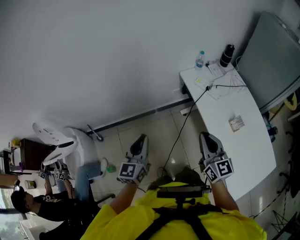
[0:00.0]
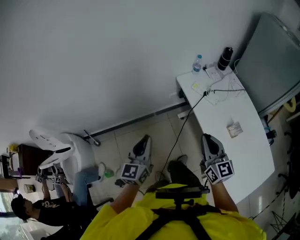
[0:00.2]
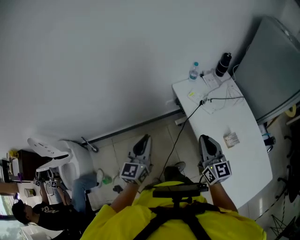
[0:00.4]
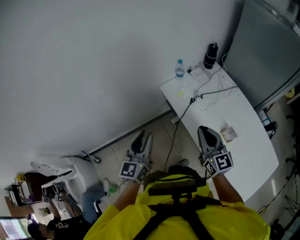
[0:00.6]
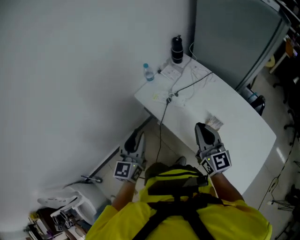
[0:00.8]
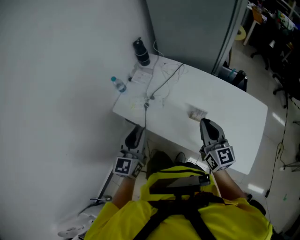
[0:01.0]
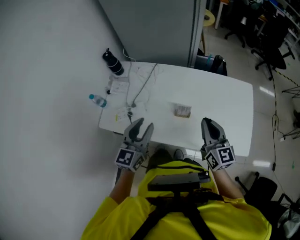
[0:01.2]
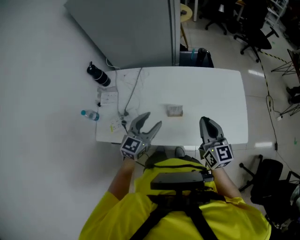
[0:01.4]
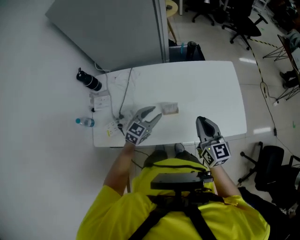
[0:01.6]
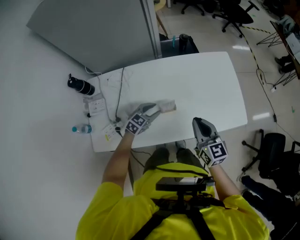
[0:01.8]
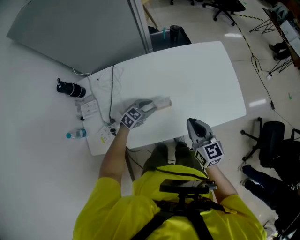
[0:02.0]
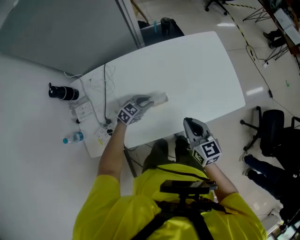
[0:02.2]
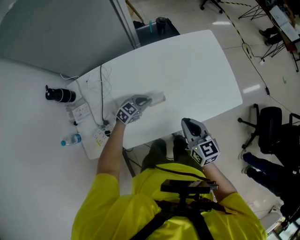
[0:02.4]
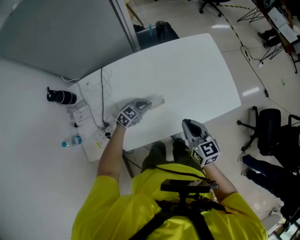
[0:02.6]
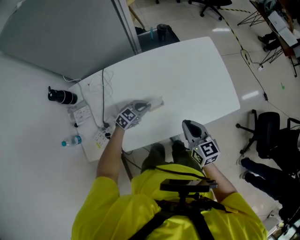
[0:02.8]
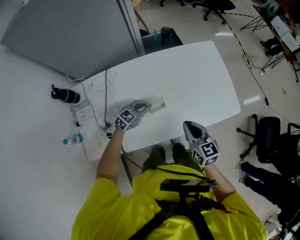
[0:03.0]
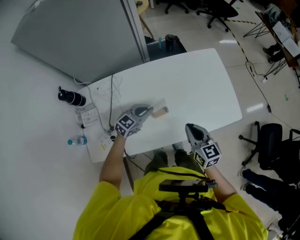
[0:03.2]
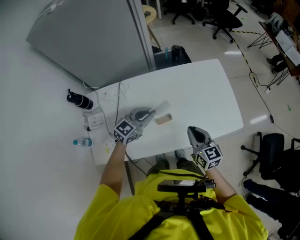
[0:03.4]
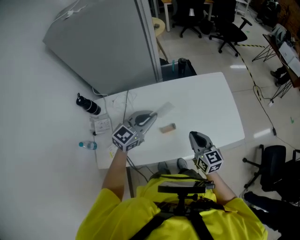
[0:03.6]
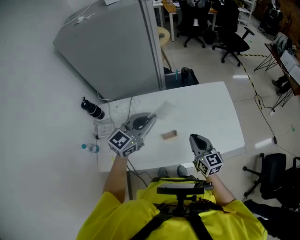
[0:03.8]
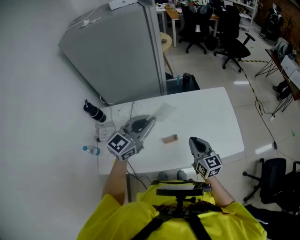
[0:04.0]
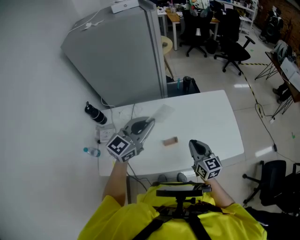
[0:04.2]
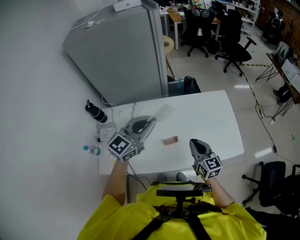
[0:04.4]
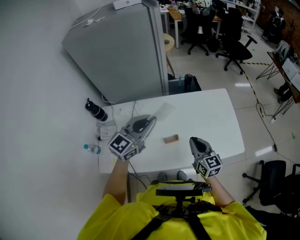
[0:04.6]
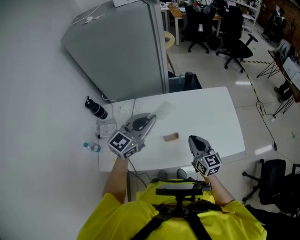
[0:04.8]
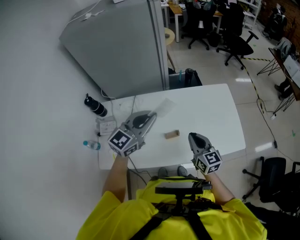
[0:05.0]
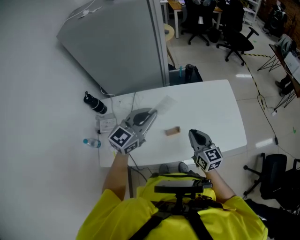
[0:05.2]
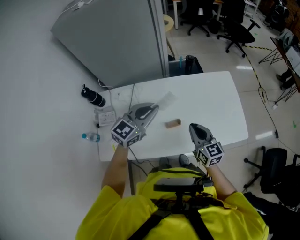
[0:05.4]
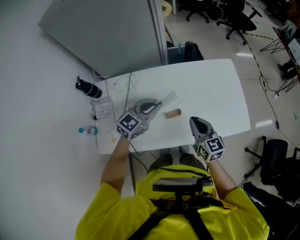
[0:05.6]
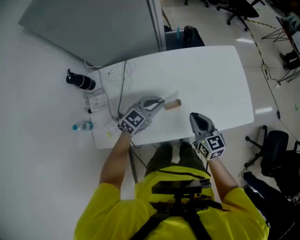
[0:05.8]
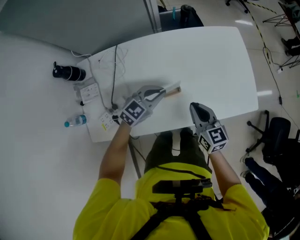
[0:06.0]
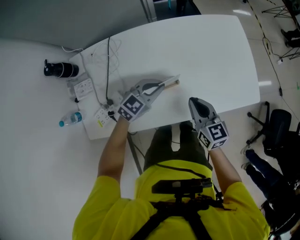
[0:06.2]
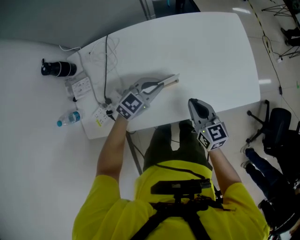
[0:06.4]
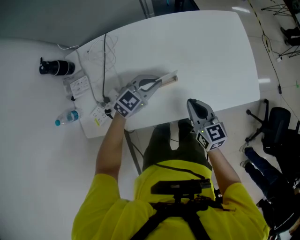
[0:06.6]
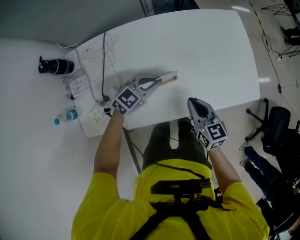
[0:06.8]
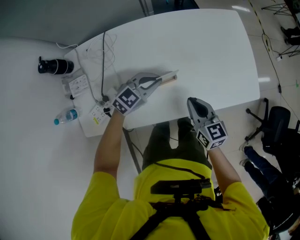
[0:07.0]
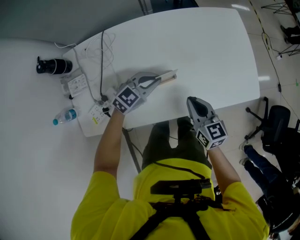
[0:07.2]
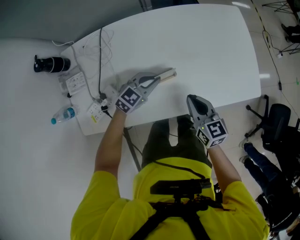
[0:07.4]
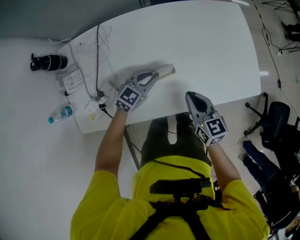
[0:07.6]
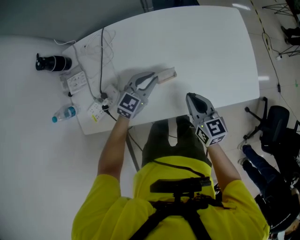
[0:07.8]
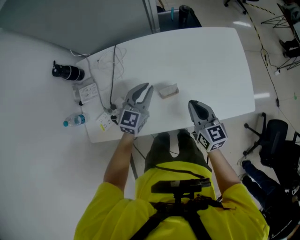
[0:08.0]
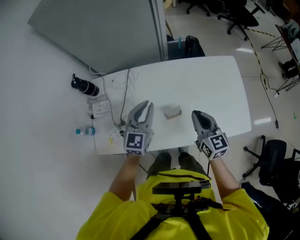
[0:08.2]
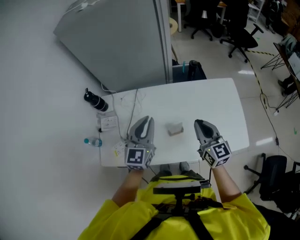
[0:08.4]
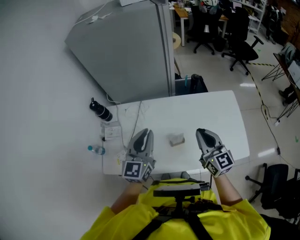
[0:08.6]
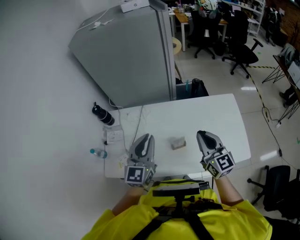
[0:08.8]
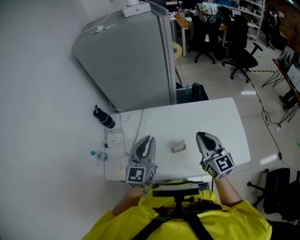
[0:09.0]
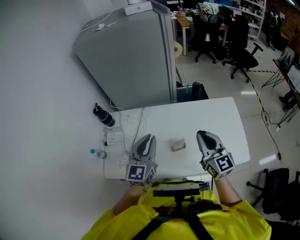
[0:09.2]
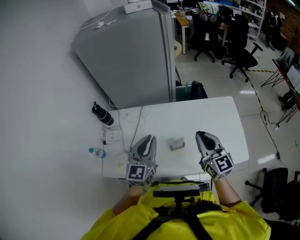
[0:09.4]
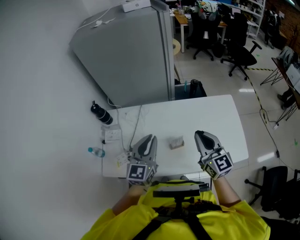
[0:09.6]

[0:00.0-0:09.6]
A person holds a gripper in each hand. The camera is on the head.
0:00.0 to 0:01.6: The left gripper shifts by about 60 cm, rotates some 100 degrees, and opens; the right gripper ends up approximately 35 cm from where it was, and changes its angle by approximately 70 degrees.
0:01.6 to 0:03.2: The right gripper heads downward, covering some 10 cm, while the left gripper travels forward by roughly 5 cm, travels downward and back again, roughly 15 cm each way, changes its angle by roughly 20 degrees, and closes its fingers.
0:03.2 to 0:04.8: The left gripper travels upward by roughly 25 cm, and swivels some 30 degrees, while the right gripper shifts approximately 5 cm upward.
0:04.8 to 0:06.4: The right gripper shifts about 15 cm downward. The left gripper is displaced downward by some 30 cm, and changes its angle by approximately 30 degrees.
0:06.4 to 0:08.0: The right gripper changes place by some 5 cm; the left gripper is displaced upward and to the left by approximately 10 cm, and rotates some 30 degrees.
0:08.0 to 0:09.6: Both grippers travel together upward, roughly 20 cm. The right gripper rotates roughly 30 degrees. The left gripper swivels about 20 degrees.

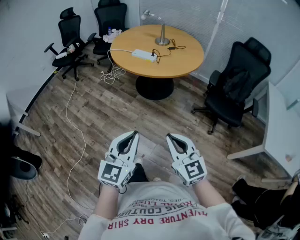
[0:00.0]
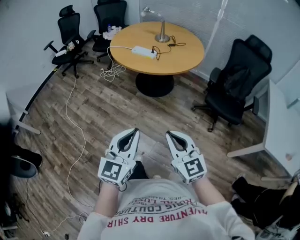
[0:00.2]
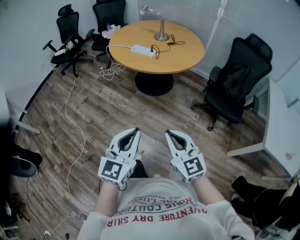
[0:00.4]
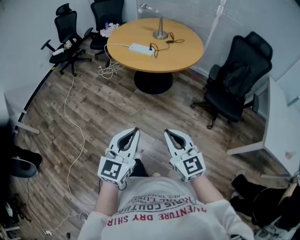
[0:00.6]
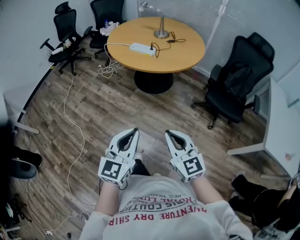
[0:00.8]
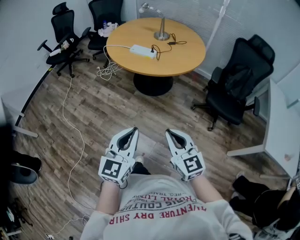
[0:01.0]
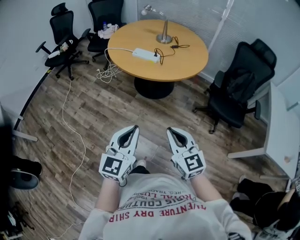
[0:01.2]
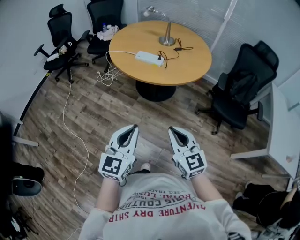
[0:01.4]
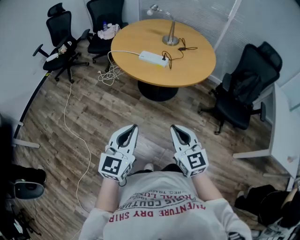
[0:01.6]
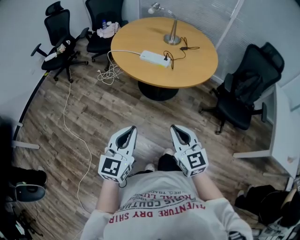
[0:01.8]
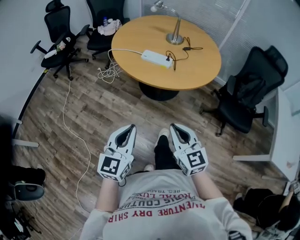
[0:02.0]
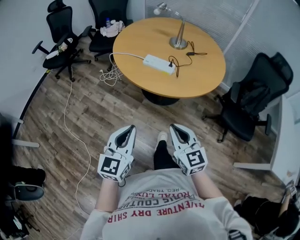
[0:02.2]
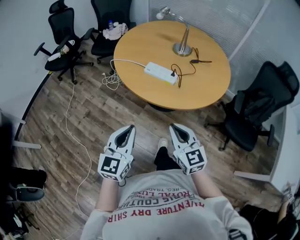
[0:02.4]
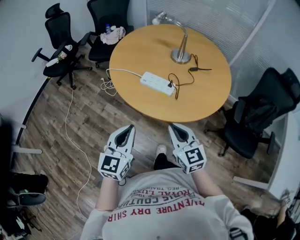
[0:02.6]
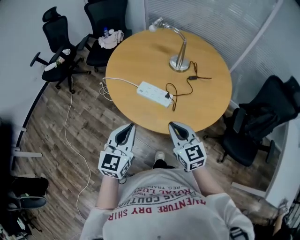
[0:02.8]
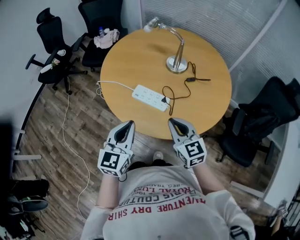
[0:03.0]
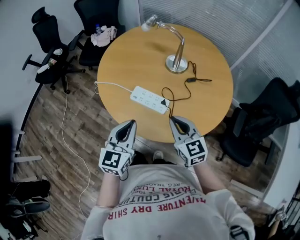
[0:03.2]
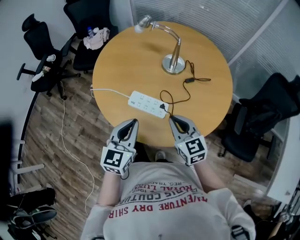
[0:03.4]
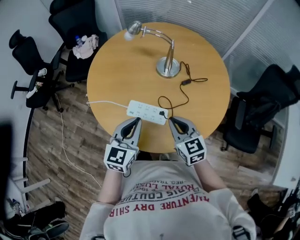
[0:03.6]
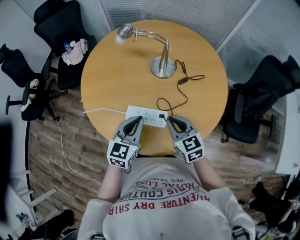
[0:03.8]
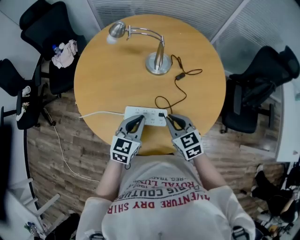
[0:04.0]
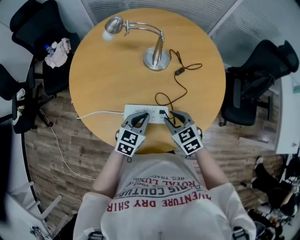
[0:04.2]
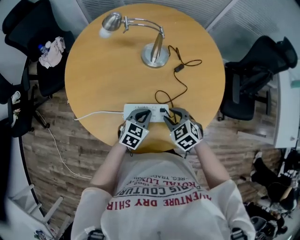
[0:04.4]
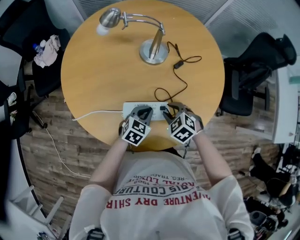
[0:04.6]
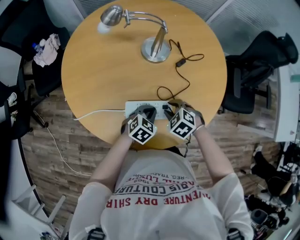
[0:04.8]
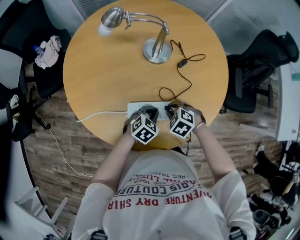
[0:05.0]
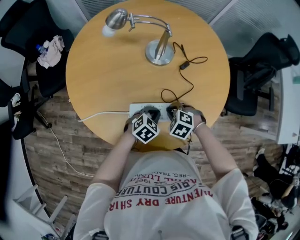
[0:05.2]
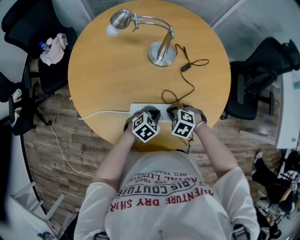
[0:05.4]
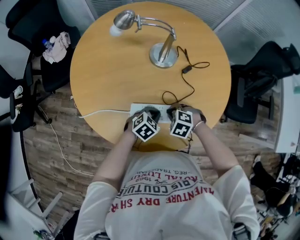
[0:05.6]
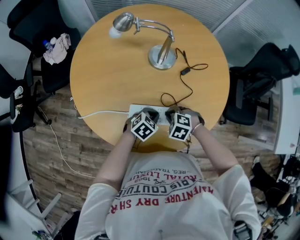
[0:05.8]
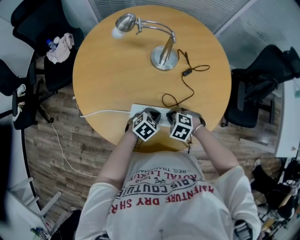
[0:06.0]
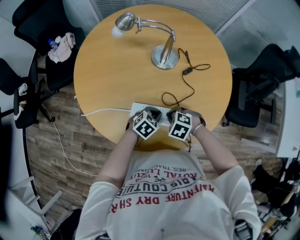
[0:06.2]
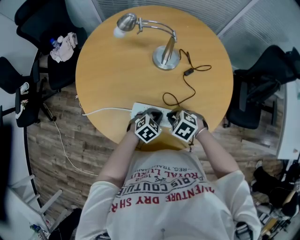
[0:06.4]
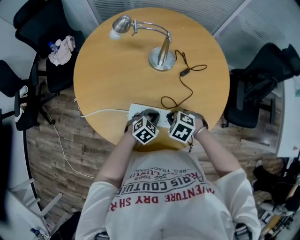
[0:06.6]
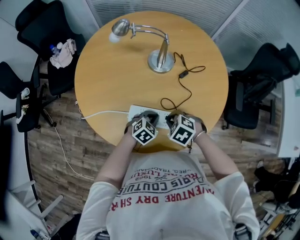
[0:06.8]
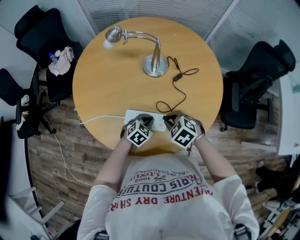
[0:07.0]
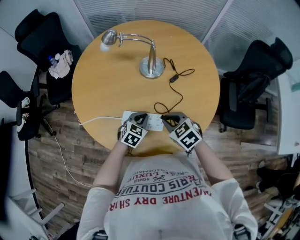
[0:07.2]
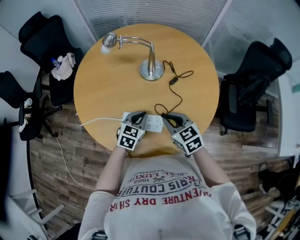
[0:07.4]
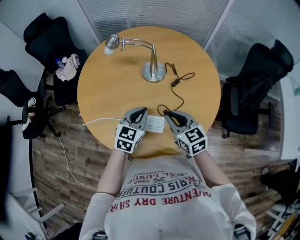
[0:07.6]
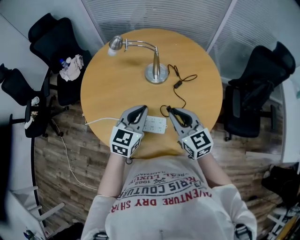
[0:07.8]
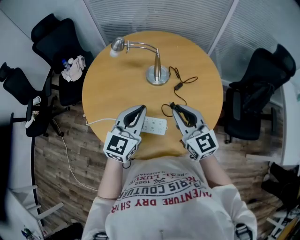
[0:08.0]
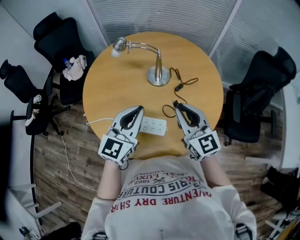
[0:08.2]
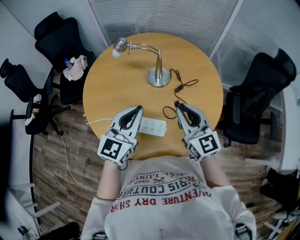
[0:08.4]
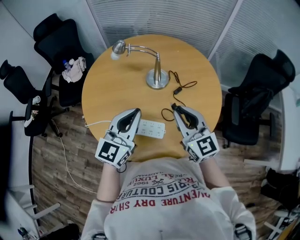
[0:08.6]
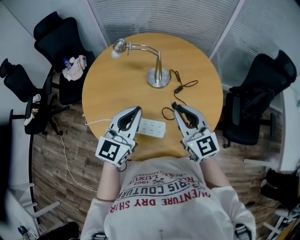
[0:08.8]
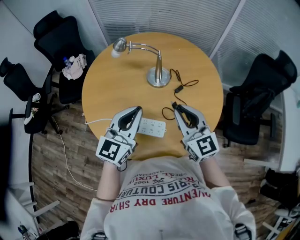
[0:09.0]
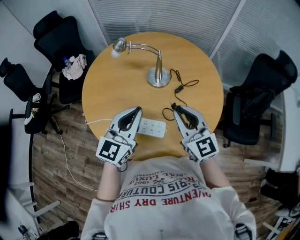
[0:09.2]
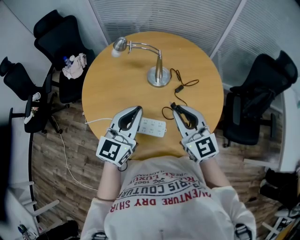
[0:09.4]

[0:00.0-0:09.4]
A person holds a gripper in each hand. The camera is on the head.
0:00.0 to 0:01.6: Both grippers move forward and to the left, some 25 cm.
0:01.6 to 0:03.2: Both grippers are carried forward, roughly 40 cm.
0:03.2 to 0:04.8: Both grippers move downward, roughly 20 cm. The right gripper tilts its fingers some 50 degrees downward, and opens its fingers; the left gripper tilts its fingers approximately 40 degrees downward.
0:04.8 to 0:06.2: The right gripper closes.
0:06.2 to 0:07.8: Both grippers move upward, about 25 cm. The right gripper tips its fingers upward by approximately 60 degrees; the left gripper tilts its fingers approximately 30 degrees upward.
0:07.8 to 0:09.4: The two grippers go approximately 10 cm upward.

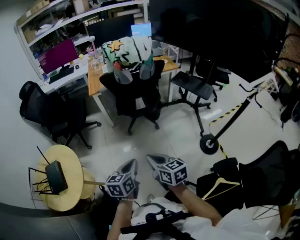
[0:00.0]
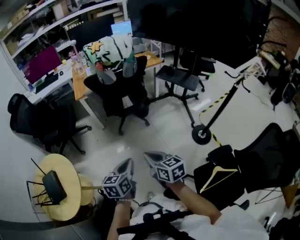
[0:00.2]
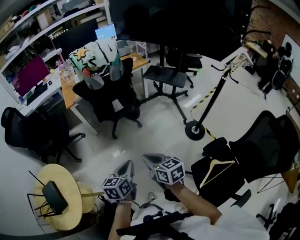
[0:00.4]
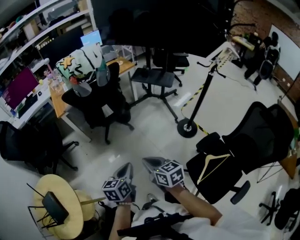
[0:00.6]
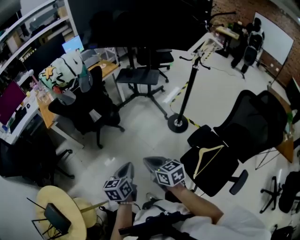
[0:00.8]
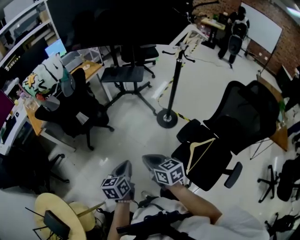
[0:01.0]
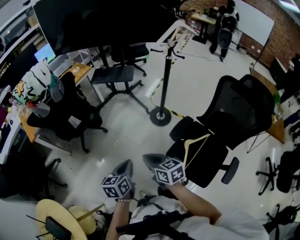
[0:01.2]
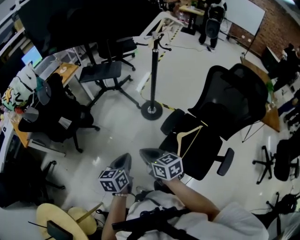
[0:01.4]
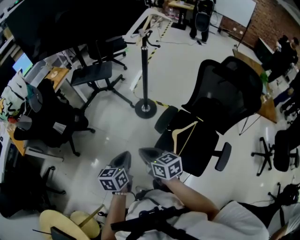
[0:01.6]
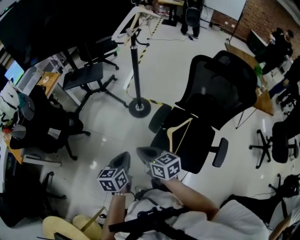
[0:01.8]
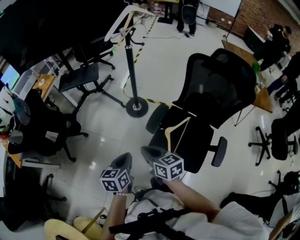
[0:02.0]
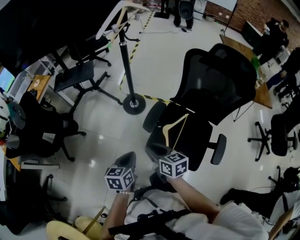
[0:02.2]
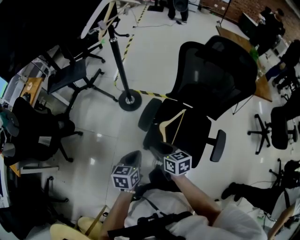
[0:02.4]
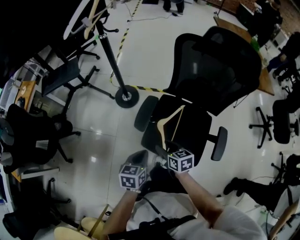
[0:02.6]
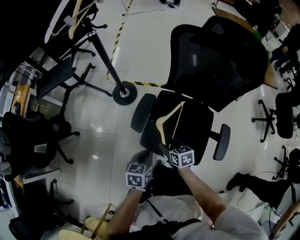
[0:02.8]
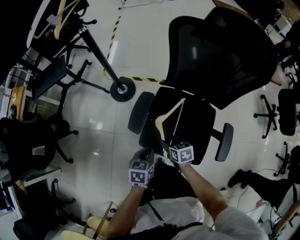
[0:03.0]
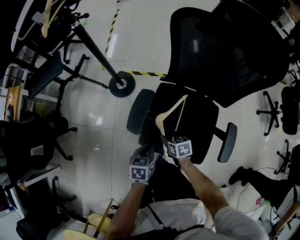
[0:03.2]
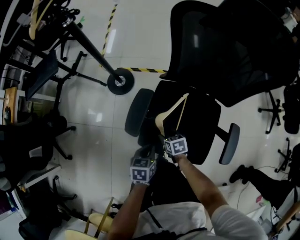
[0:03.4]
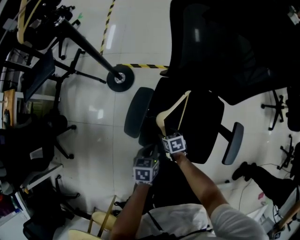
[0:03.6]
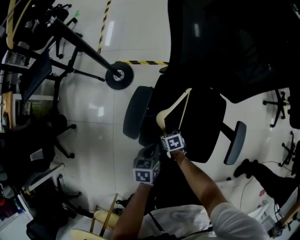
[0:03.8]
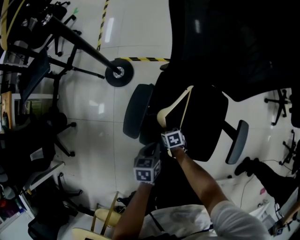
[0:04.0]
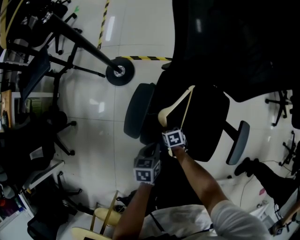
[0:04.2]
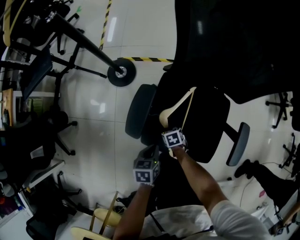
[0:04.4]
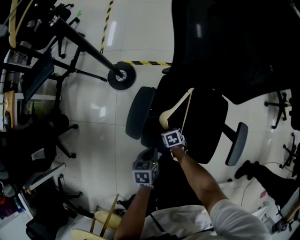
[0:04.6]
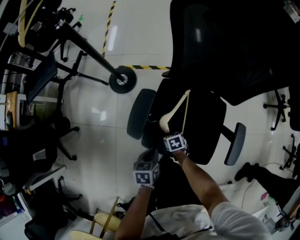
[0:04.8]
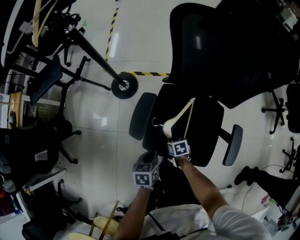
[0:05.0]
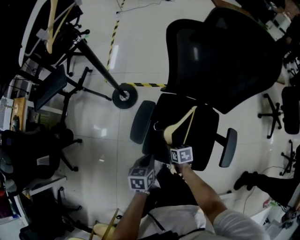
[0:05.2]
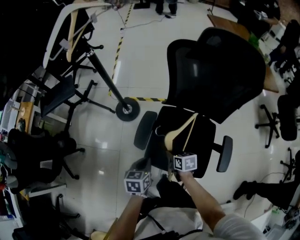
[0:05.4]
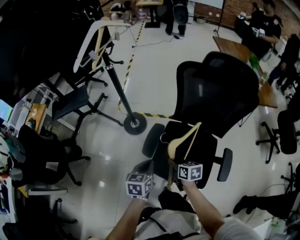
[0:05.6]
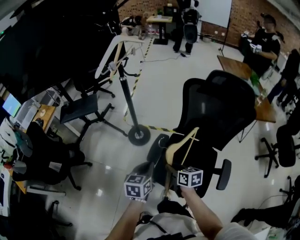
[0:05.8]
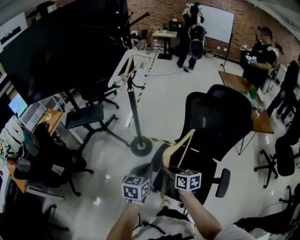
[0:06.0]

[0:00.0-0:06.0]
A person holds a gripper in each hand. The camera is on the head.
0:00.0 to 0:01.6: The left gripper moves roughly 30 cm, and rotates about 40 degrees. Meanwhile the right gripper moves approximately 30 cm, and changes its angle by approximately 40 degrees.
0:01.6 to 0:03.0: The left gripper shifts by about 35 cm, and swivels roughly 30 degrees. The right gripper travels downward by some 30 cm, swivels approximately 40 degrees, and opens up.
0:03.0 to 0:04.4: The left gripper moves downward, some 10 cm, while the right gripper is displaced downward by about 20 cm, and rotates roughly 20 degrees.
0:04.4 to 0:06.0: The grippers both shift upward by roughly 40 cm. The right gripper angles its fingers upward, by about 40 degrees. The left gripper rotates approximately 30 degrees.
